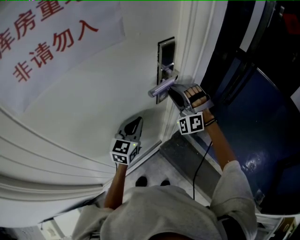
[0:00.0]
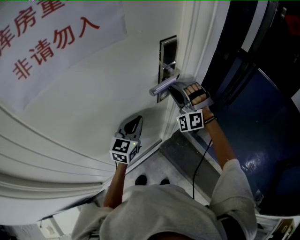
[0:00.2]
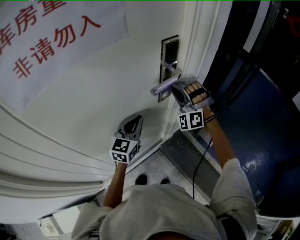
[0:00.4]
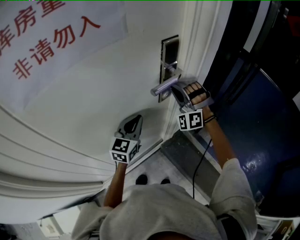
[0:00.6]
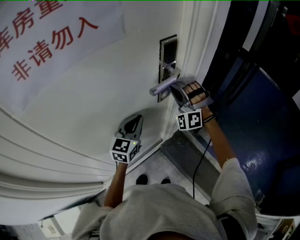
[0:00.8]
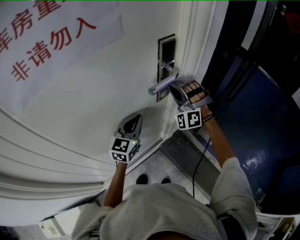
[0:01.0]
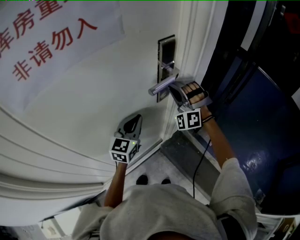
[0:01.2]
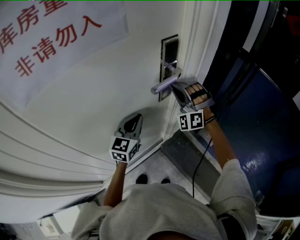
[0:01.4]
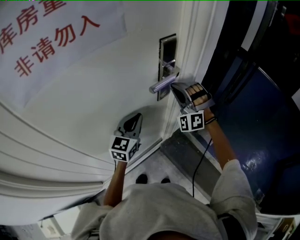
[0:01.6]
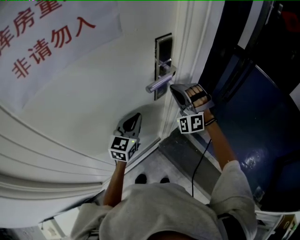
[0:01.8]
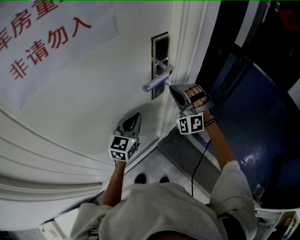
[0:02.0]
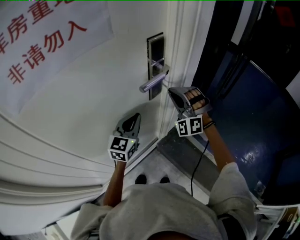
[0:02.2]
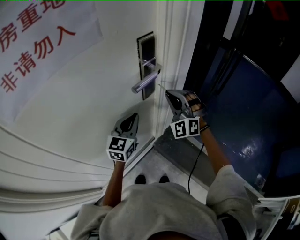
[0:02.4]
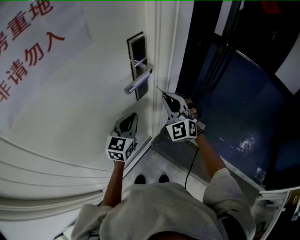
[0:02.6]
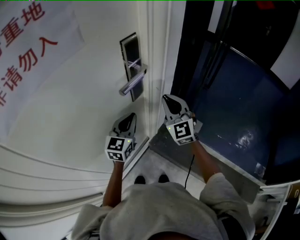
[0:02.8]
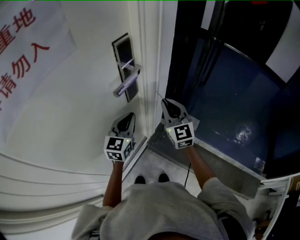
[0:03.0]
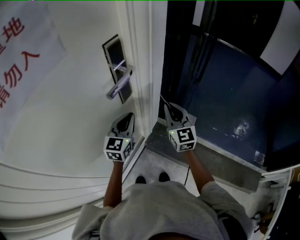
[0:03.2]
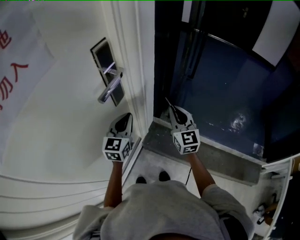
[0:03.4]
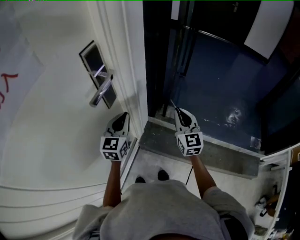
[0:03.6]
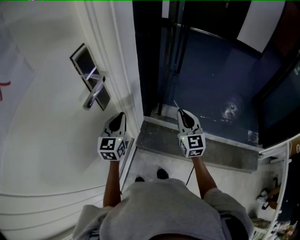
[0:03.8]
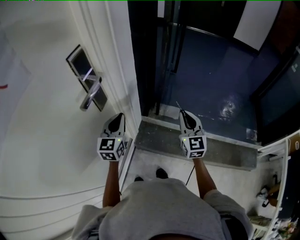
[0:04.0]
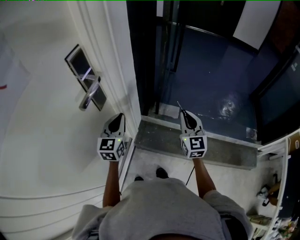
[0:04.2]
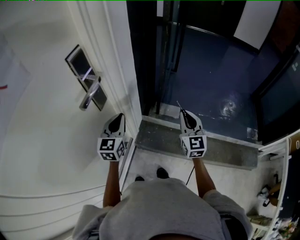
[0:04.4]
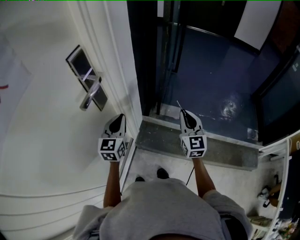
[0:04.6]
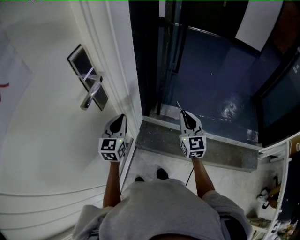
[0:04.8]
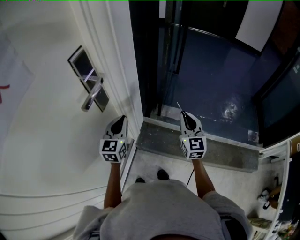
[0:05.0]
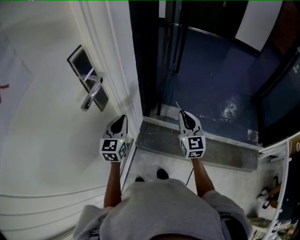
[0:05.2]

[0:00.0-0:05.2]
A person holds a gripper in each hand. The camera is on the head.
0:00.0 to 0:01.8: The right gripper closes its fingers.
0:01.8 to 0:03.4: The left gripper moves to the right, roughly 10 cm; the right gripper travels to the right and backward by about 20 cm, and rotates around the line of its fingers by roughly 80 degrees, clockwise from behind.
0:03.4 to 0:05.2: The right gripper heads to the right, covering about 10 cm.

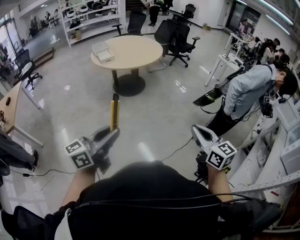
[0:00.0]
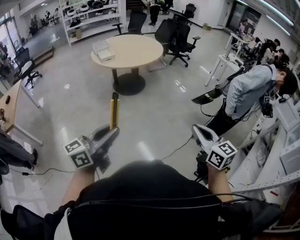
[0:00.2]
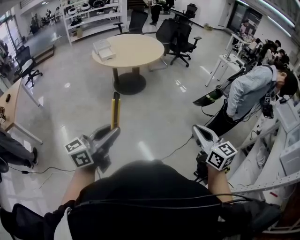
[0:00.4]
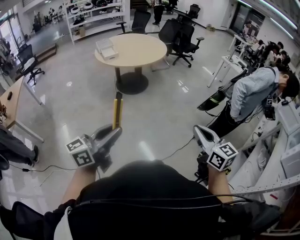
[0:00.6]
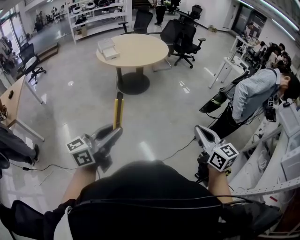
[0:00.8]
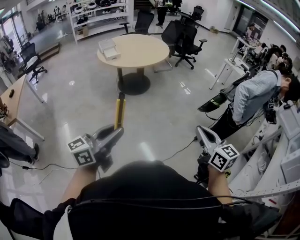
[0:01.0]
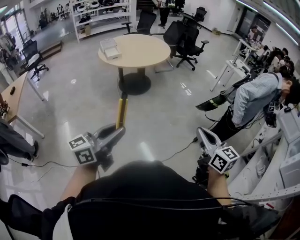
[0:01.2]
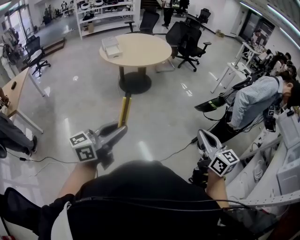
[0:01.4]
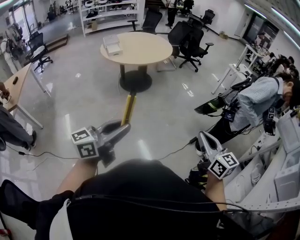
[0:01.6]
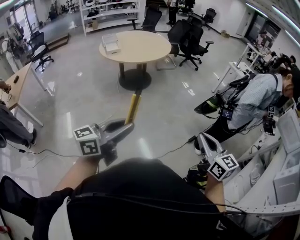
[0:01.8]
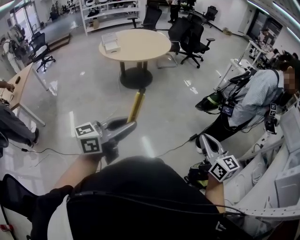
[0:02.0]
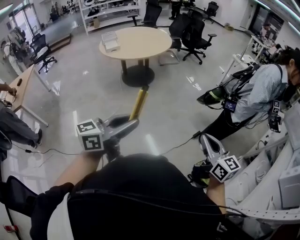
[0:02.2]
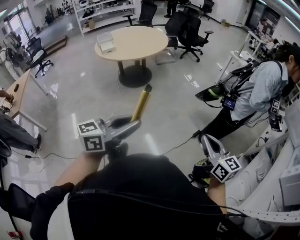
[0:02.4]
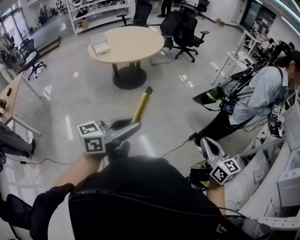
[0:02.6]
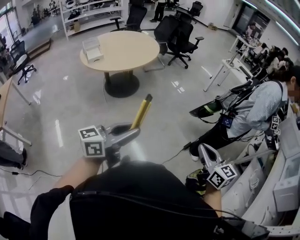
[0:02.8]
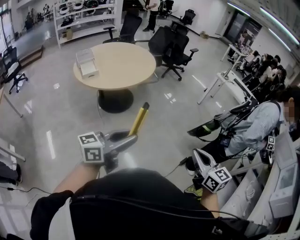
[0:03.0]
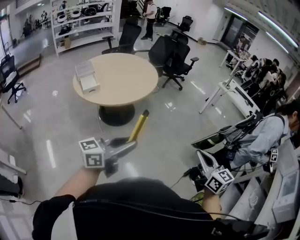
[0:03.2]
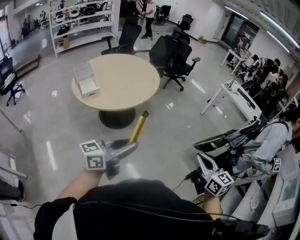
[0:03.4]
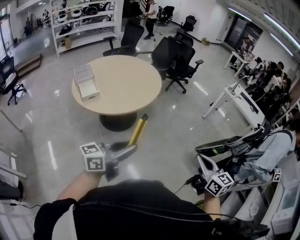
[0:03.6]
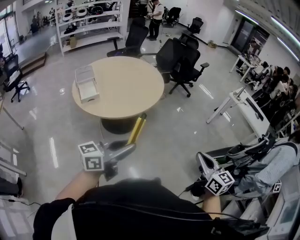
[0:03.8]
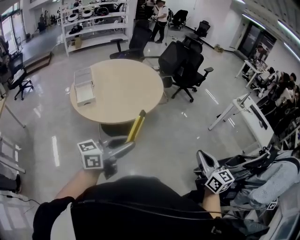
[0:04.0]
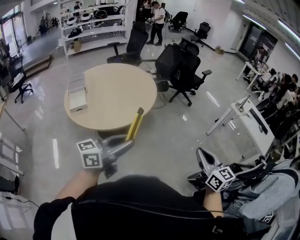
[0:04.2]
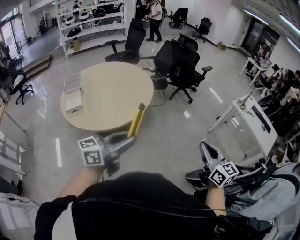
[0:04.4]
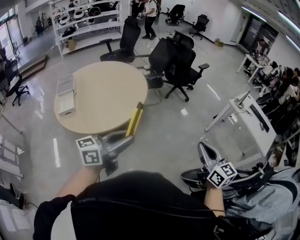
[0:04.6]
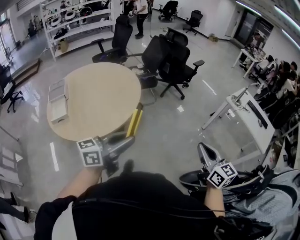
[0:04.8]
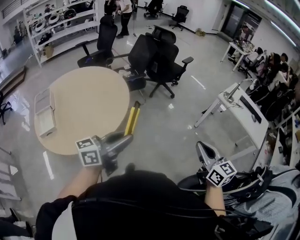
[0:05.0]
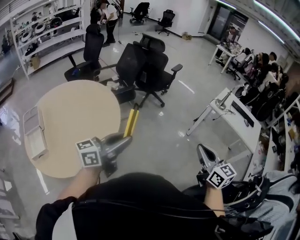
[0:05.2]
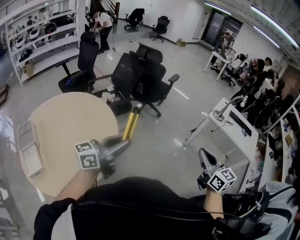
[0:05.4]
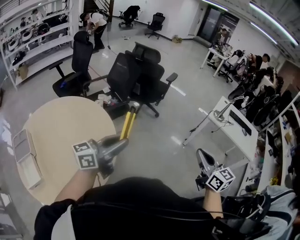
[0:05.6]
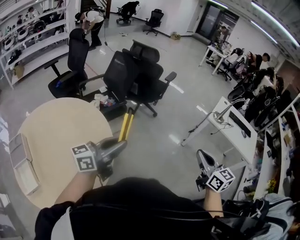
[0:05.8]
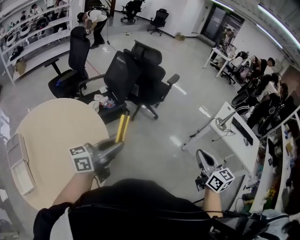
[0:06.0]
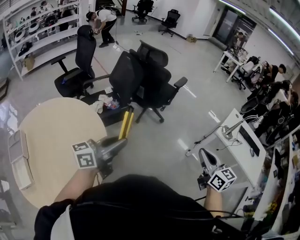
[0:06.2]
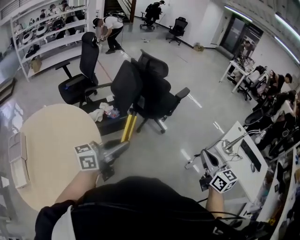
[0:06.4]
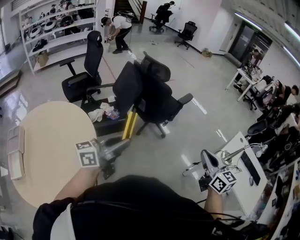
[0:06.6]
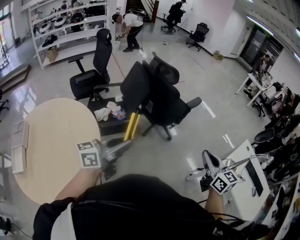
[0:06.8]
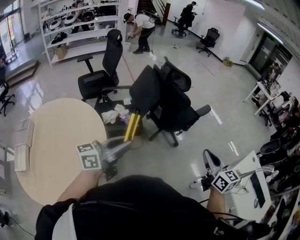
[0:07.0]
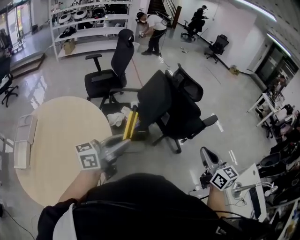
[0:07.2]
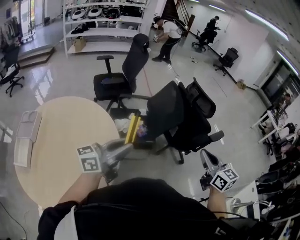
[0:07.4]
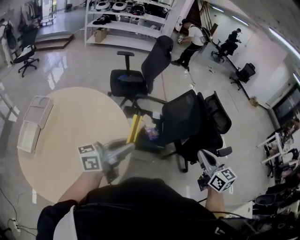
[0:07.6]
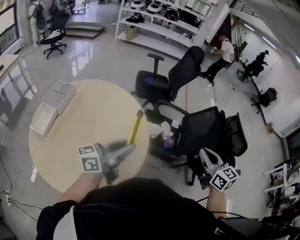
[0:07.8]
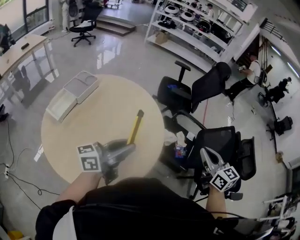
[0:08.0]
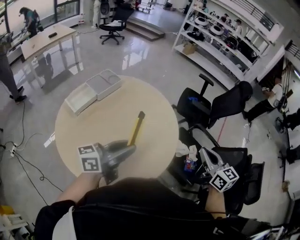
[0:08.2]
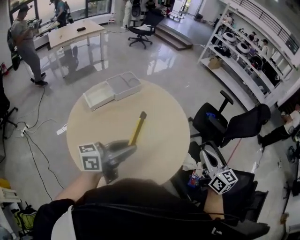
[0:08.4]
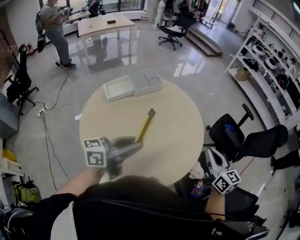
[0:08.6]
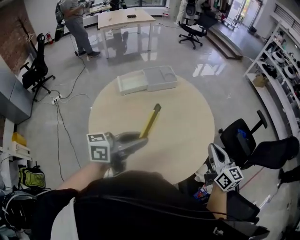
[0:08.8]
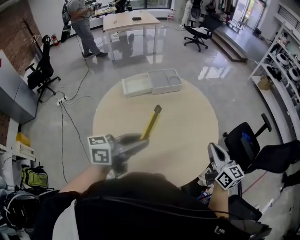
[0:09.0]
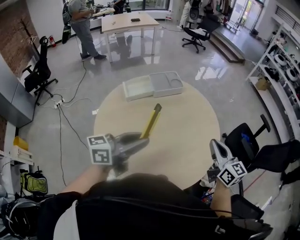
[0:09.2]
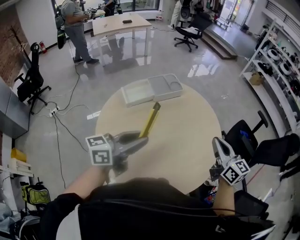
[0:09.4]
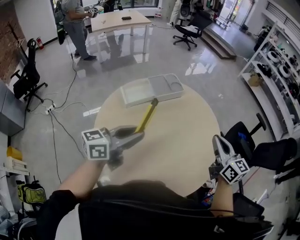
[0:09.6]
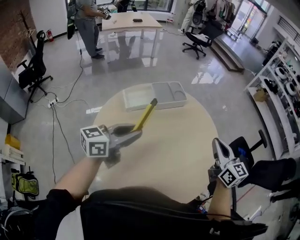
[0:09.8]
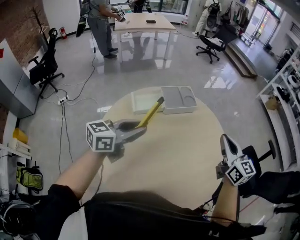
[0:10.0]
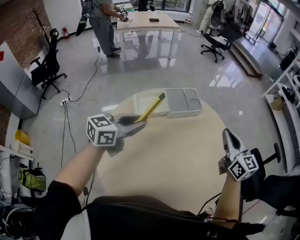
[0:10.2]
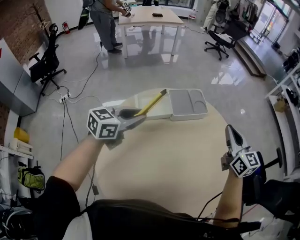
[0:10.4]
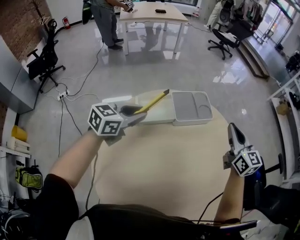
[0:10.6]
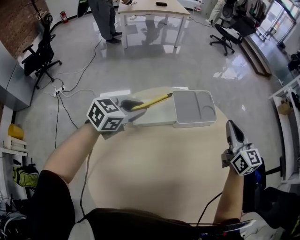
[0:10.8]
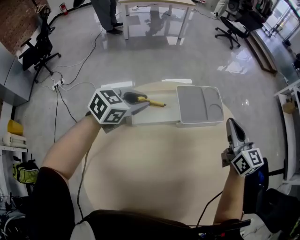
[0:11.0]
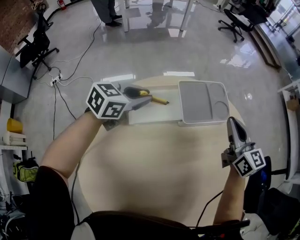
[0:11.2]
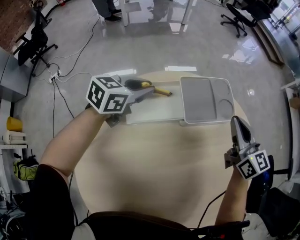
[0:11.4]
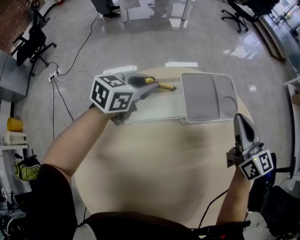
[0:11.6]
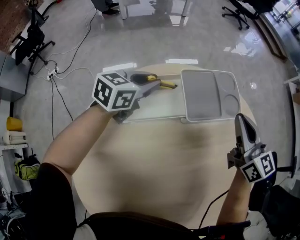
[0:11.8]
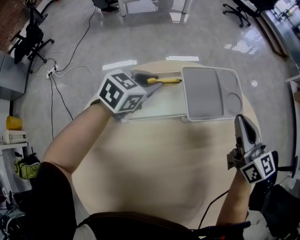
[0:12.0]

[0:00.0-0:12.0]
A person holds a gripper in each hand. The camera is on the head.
0:00.0 to 0:01.6: The grippers both shift to the right by approximately 10 cm.
0:01.6 to 0:03.0: Both grippers move forward, some 25 cm.
0:03.0 to 0:04.4: Both grippers are carried forward, approximately 50 cm.
0:04.4 to 0:06.0: The pair of grippers is taken forward, some 50 cm.
0:06.0 to 0:07.6: The left gripper shifts by approximately 25 cm, and changes its angle by some 40 degrees. The right gripper ends up some 50 cm from where it was, and swivels roughly 40 degrees.
0:07.6 to 0:09.0: The right gripper shifts by roughly 50 cm, and turns by some 70 degrees, while the left gripper ends up some 25 cm from where it was, and rotates some 70 degrees.
0:09.0 to 0:10.4: The grippers both shift forward and to the left by approximately 35 cm. The left gripper turns by approximately 30 degrees.
0:10.4 to 0:12.0: The left gripper heads downward and forward, covering about 35 cm. The right gripper heads downward, forward and to the left, covering some 30 cm.

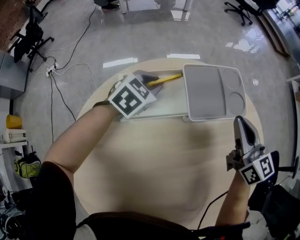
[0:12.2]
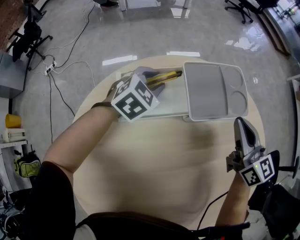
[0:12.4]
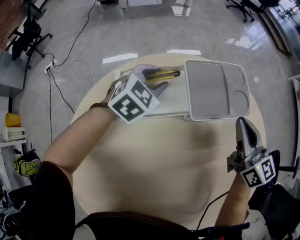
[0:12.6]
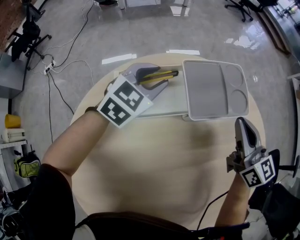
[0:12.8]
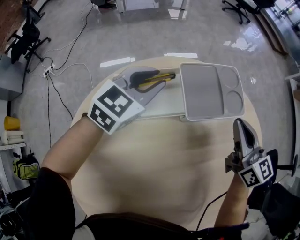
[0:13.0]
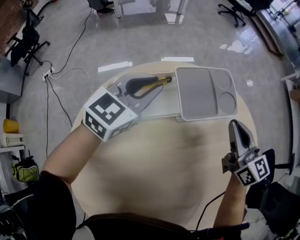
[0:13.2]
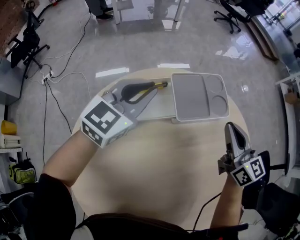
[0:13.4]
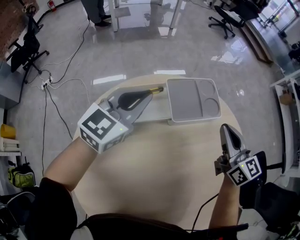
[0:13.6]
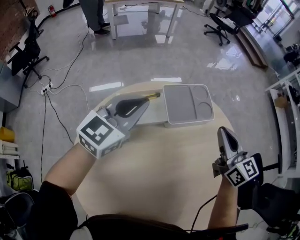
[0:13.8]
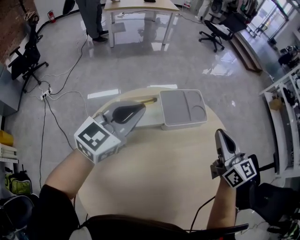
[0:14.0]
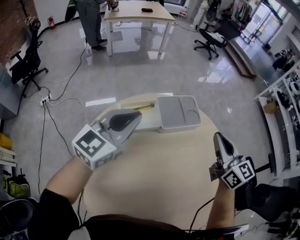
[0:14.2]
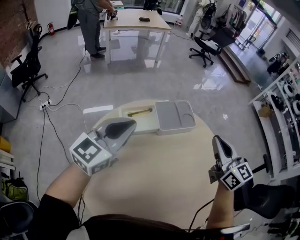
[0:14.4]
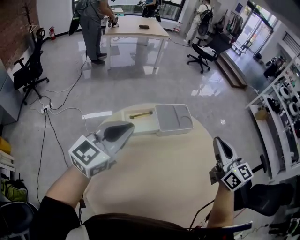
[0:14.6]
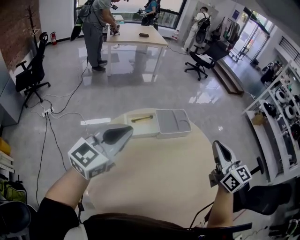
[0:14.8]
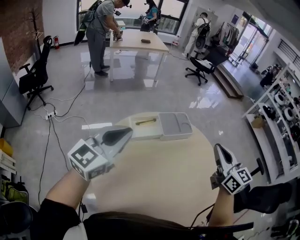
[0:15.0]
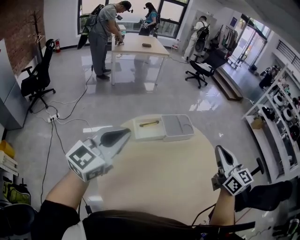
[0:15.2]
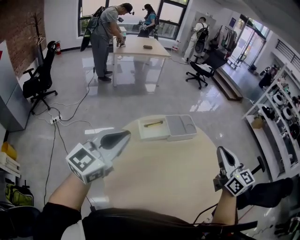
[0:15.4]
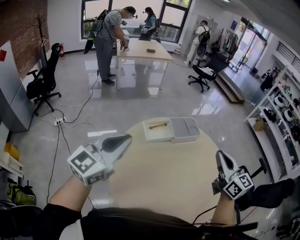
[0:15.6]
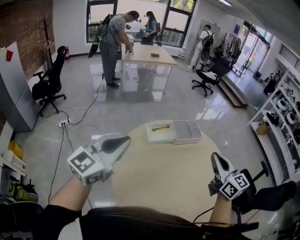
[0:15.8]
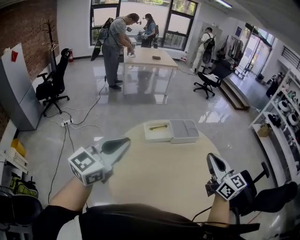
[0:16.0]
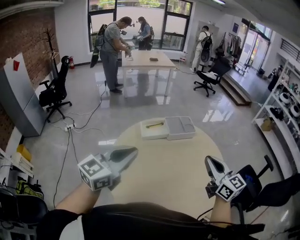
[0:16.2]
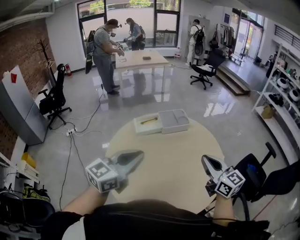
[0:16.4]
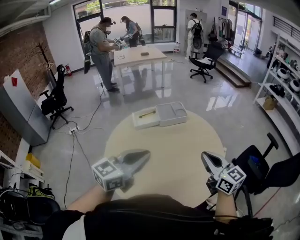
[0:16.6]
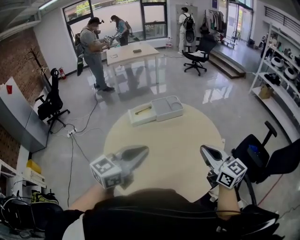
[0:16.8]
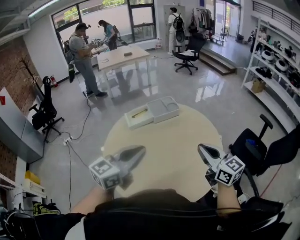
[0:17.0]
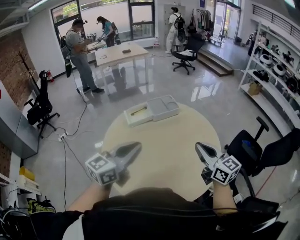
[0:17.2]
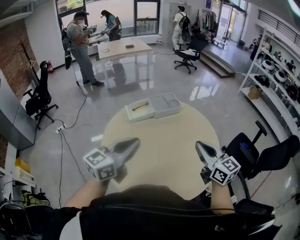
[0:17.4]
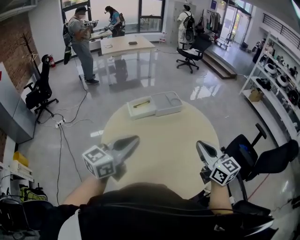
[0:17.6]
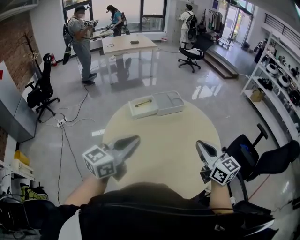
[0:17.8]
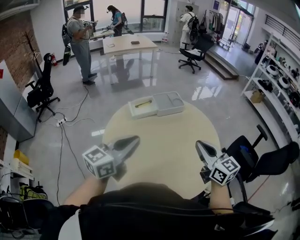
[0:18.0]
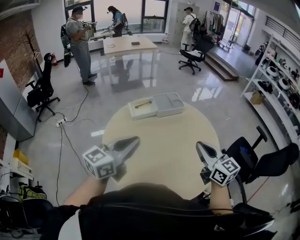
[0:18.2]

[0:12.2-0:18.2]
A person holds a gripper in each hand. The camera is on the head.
0:12.2 to 0:13.8: The left gripper goes approximately 25 cm upward and backward, and points its fingers some 30 degrees further upward, while the right gripper is displaced upward and backward by roughly 10 cm.
0:13.8 to 0:15.2: The left gripper moves backward, upward and to the left, approximately 40 cm, while the right gripper moves backward and upward, about 35 cm.
0:15.2 to 0:16.6: The left gripper moves to the right and backward, about 30 cm; the right gripper is displaced backward and to the right by some 25 cm.
0:16.6 to 0:18.2: Both grippers travel together to the left, about 10 cm.
